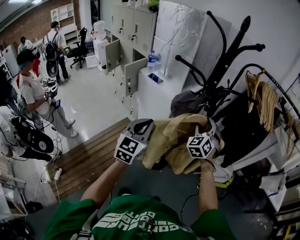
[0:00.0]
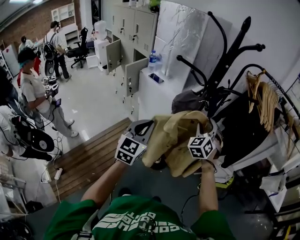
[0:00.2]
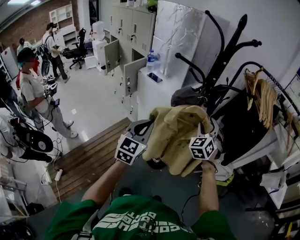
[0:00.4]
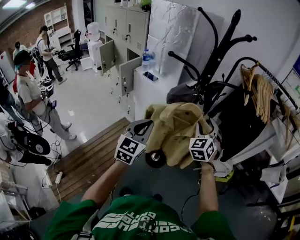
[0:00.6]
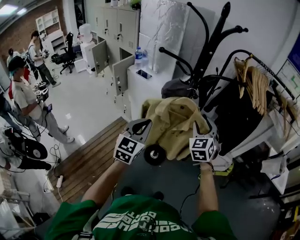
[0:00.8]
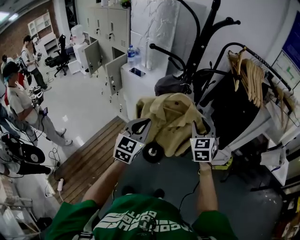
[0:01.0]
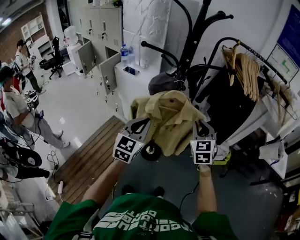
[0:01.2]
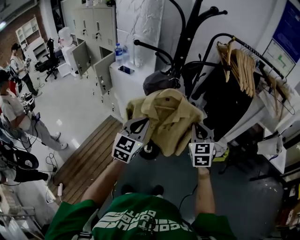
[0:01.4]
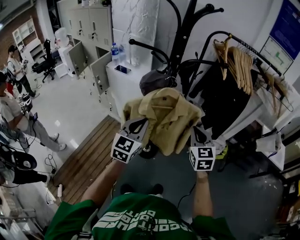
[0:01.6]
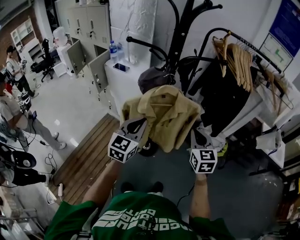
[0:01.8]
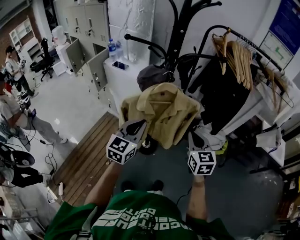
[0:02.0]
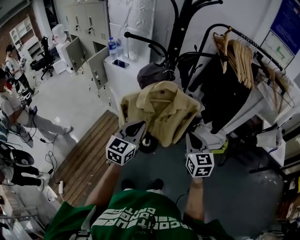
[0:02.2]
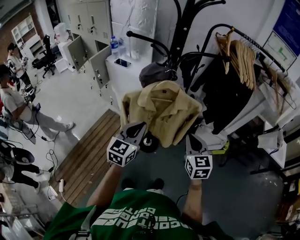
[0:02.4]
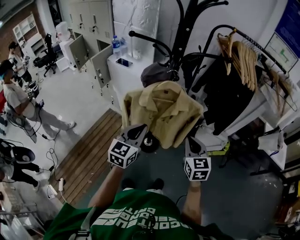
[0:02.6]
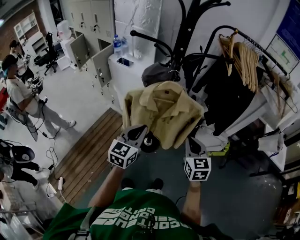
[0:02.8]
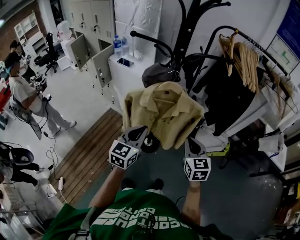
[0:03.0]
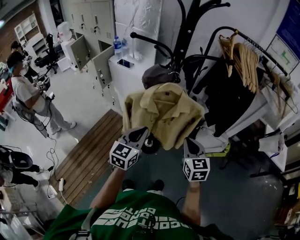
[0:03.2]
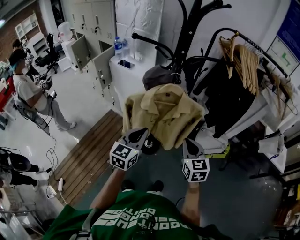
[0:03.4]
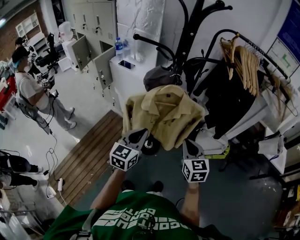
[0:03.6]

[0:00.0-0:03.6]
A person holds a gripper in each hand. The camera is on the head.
0:00.0 to 0:01.8: The left gripper shifts about 10 cm to the right. Meanwhile the right gripper goes roughly 20 cm backward and to the right, twists approximately 40 degrees clockwise, seen from behind, and closes up.
0:01.8 to 0:03.6: The two grippers go roughly 5 cm downward.

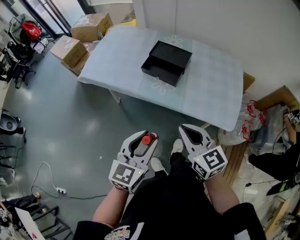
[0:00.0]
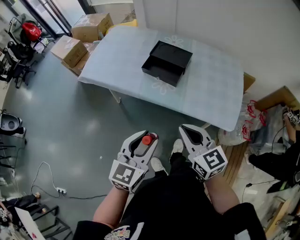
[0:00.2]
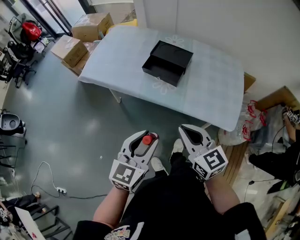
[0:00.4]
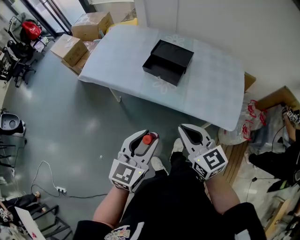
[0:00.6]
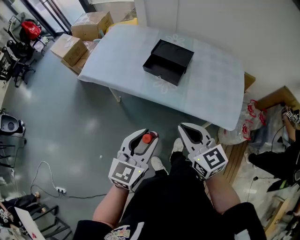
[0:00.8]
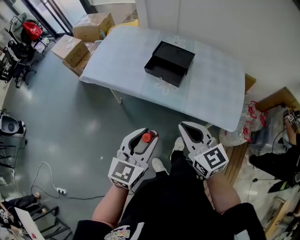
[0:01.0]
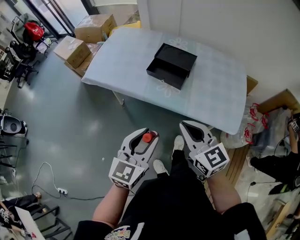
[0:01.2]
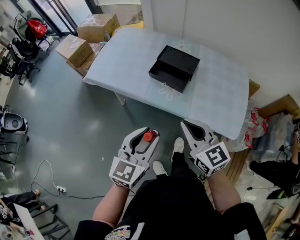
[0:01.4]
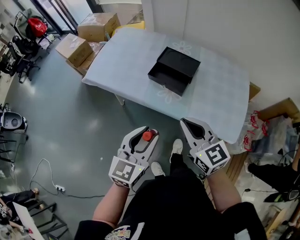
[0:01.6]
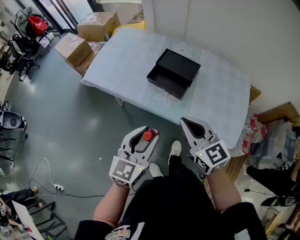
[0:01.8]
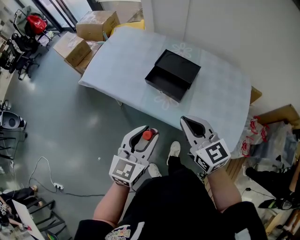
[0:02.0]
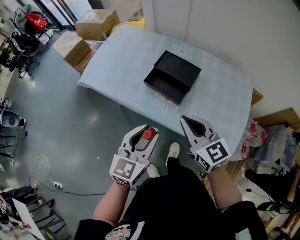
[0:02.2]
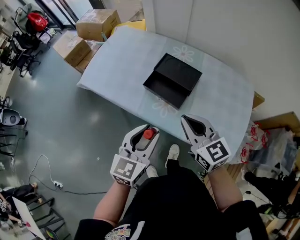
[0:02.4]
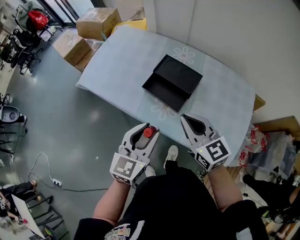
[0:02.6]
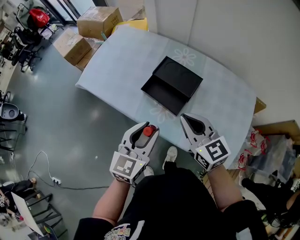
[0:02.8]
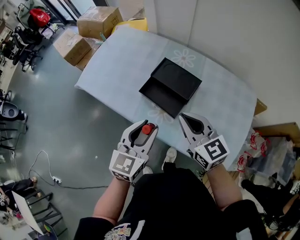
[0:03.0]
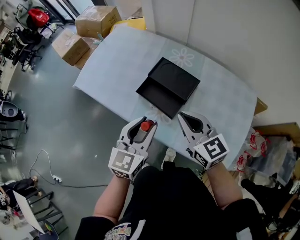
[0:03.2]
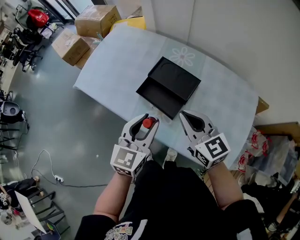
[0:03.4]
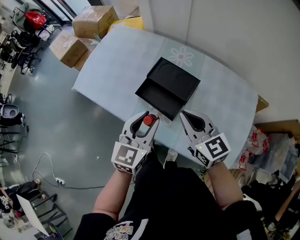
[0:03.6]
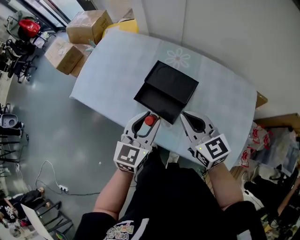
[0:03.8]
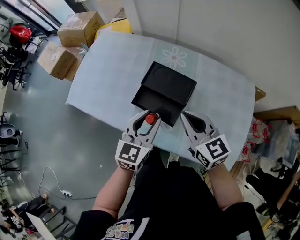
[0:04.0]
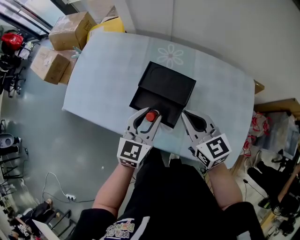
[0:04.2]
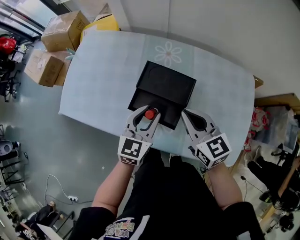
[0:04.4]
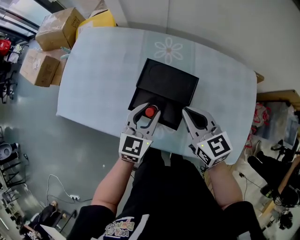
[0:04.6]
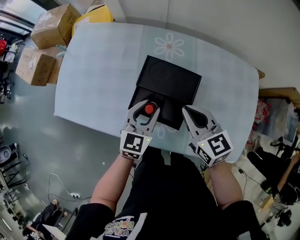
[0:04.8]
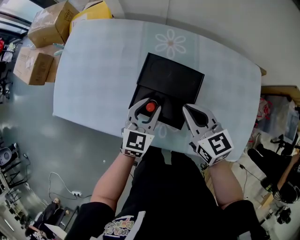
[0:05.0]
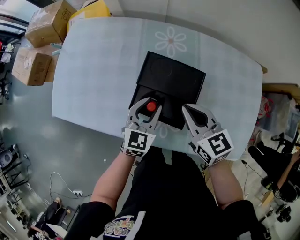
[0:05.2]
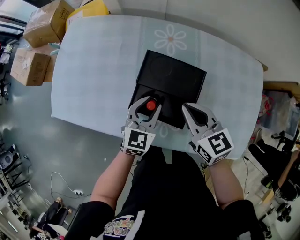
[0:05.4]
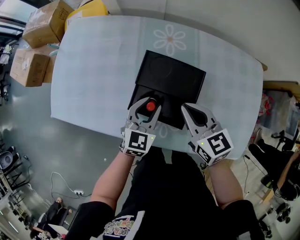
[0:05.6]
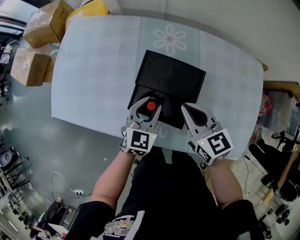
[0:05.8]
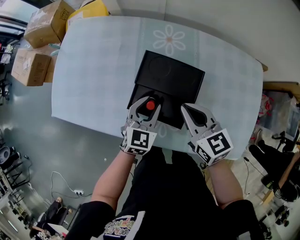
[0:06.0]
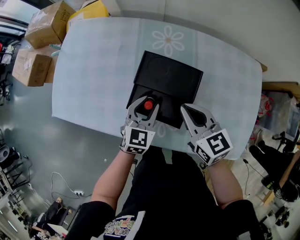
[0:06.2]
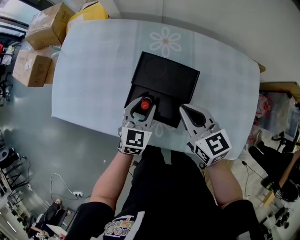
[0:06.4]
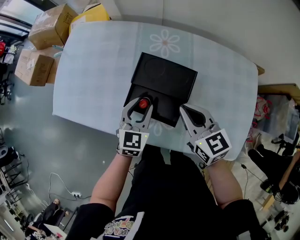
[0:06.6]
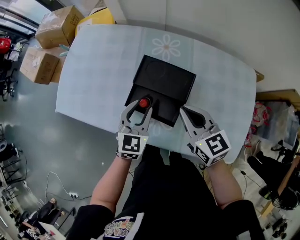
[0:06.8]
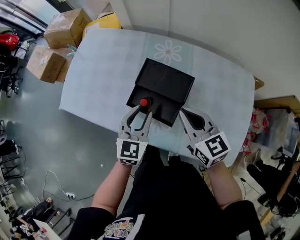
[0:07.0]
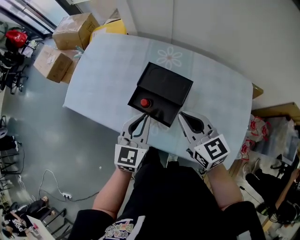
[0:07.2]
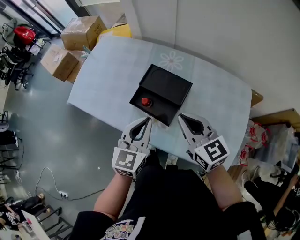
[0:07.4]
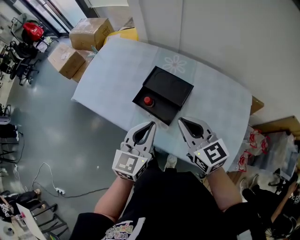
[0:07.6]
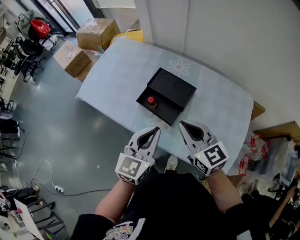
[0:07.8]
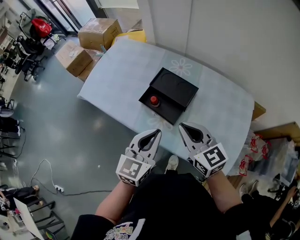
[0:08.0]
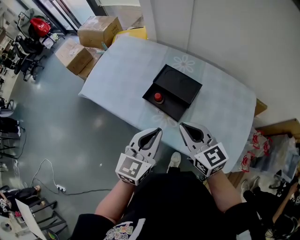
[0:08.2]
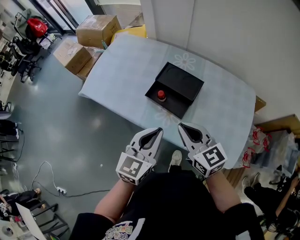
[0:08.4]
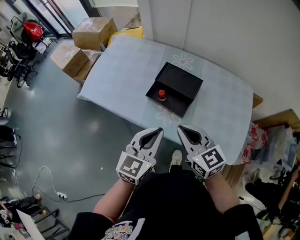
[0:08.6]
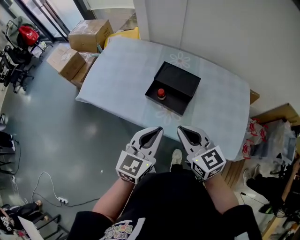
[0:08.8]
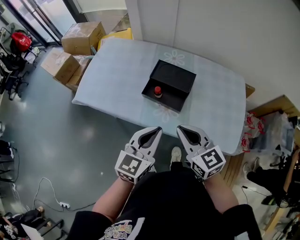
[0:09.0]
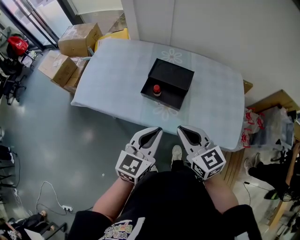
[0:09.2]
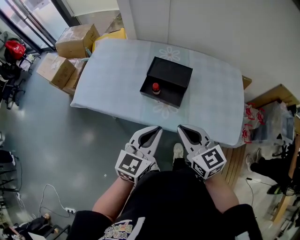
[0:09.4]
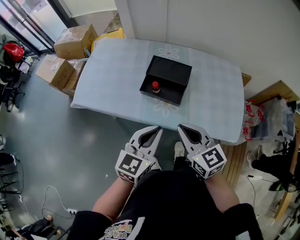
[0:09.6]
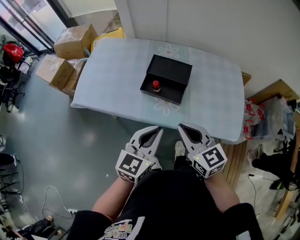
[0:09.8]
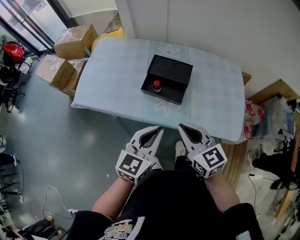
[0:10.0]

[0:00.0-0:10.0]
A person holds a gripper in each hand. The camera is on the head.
0:00.0 to 0:01.4: The right gripper changes place by about 5 cm.
0:01.4 to 0:02.8: The left gripper moves forward and to the right, approximately 20 cm, while the right gripper shifts roughly 20 cm forward.
0:02.8 to 0:04.2: The right gripper shifts approximately 10 cm forward. Meanwhile the left gripper heads forward, covering approximately 15 cm.
0:04.2 to 0:05.8: The grippers both shift downward and forward by approximately 10 cm.
0:05.8 to 0:07.2: Both grippers move upward and backward, approximately 15 cm. The left gripper closes up.
0:07.2 to 0:08.6: The left gripper goes approximately 15 cm backward and upward. Meanwhile the right gripper travels backward and to the left by roughly 15 cm.
0:08.6 to 0:10.0: The left gripper shifts by some 5 cm. Meanwhile the right gripper travels backward by approximately 5 cm.

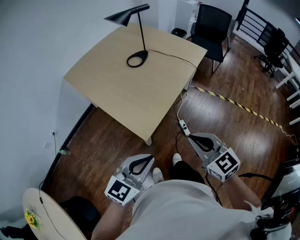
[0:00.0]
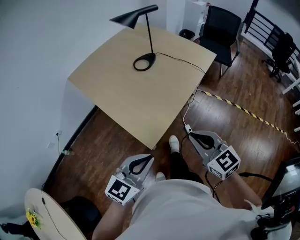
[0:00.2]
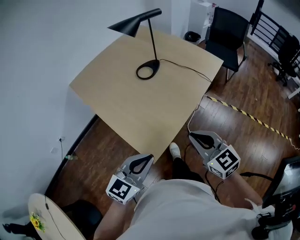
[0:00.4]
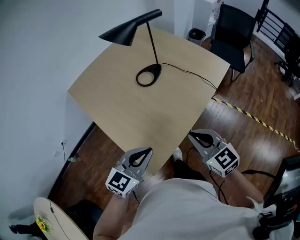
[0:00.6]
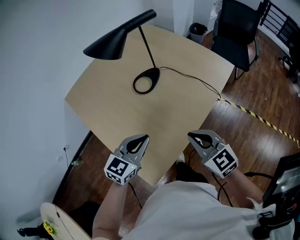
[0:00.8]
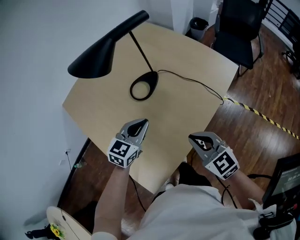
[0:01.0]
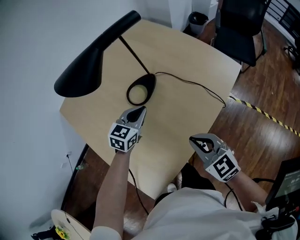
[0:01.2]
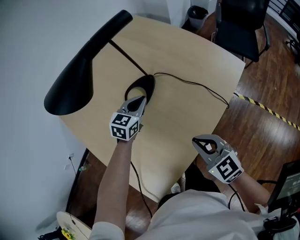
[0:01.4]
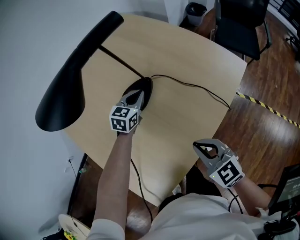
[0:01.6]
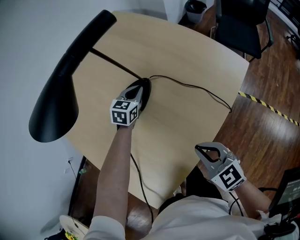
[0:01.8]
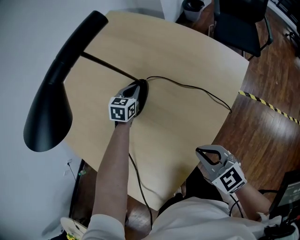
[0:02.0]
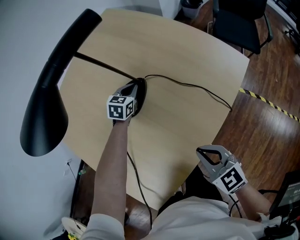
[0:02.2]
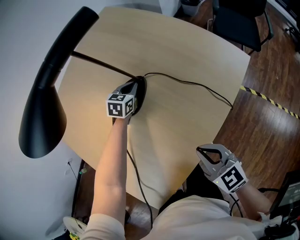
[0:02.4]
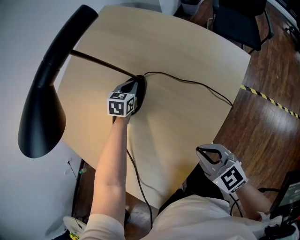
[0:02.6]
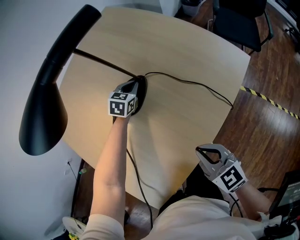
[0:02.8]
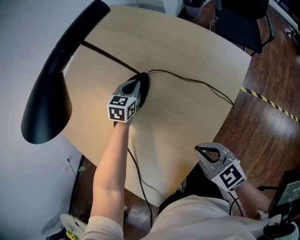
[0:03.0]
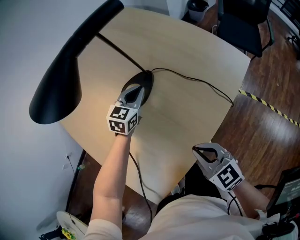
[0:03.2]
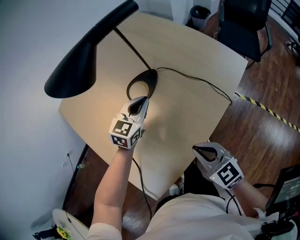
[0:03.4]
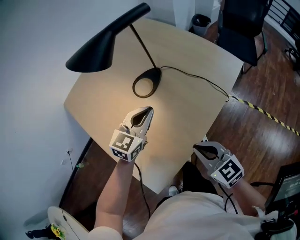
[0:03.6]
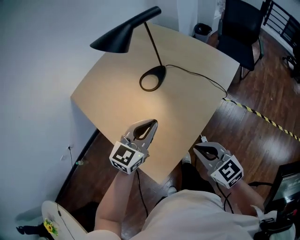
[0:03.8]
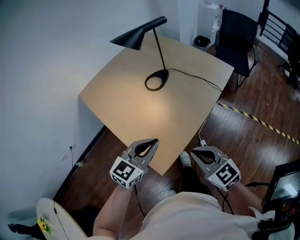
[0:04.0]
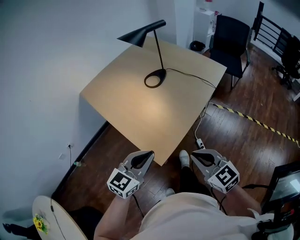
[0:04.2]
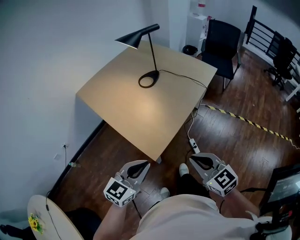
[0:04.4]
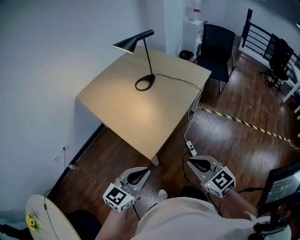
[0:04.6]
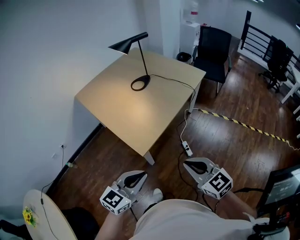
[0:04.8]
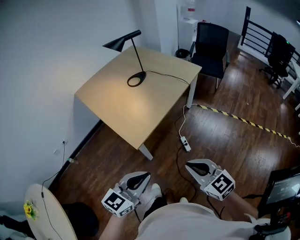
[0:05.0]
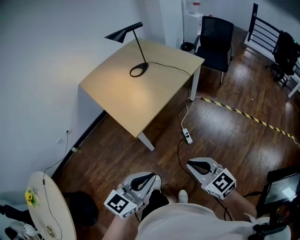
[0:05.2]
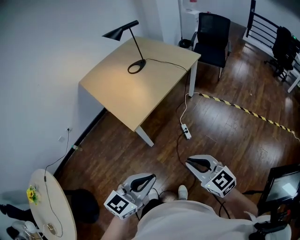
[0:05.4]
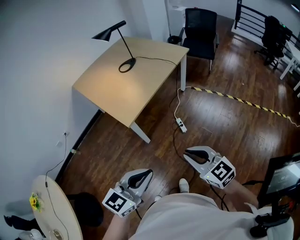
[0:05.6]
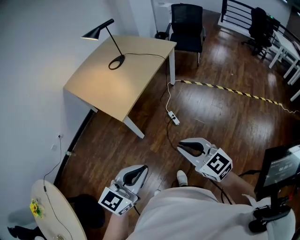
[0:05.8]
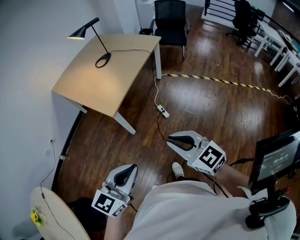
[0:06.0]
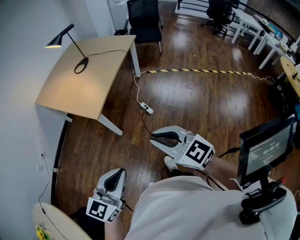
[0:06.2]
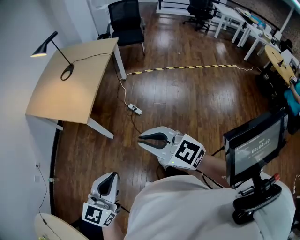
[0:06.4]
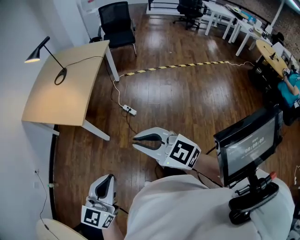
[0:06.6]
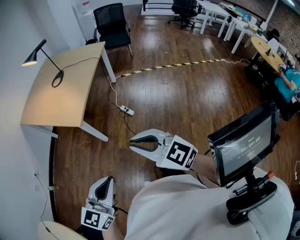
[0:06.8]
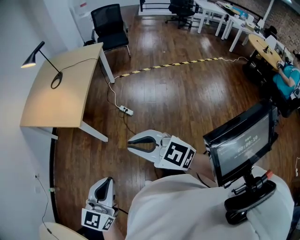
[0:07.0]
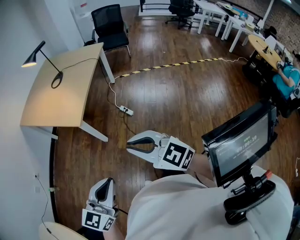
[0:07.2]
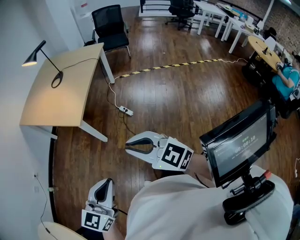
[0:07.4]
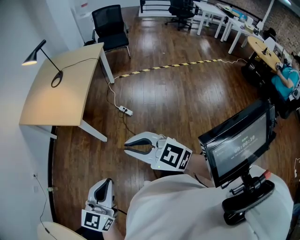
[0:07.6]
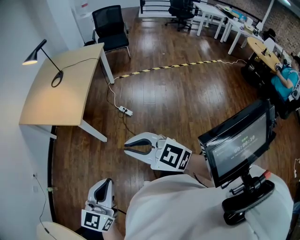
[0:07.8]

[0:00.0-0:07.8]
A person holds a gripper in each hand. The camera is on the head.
0:00.0 to 0:01.6: The two grippers travel together, forward, some 70 cm. The left gripper changes its angle by about 30 degrees.
0:01.6 to 0:03.2: The left gripper moves some 10 cm downward and comes back.
0:03.2 to 0:04.6: Both grippers are carried backward, some 60 cm. The left gripper turns by about 20 degrees.
0:04.6 to 0:06.2: The two grippers go approximately 30 cm backward and to the right.
0:06.2 to 0:07.8: The grippers both shift backward and to the left by approximately 10 cm.

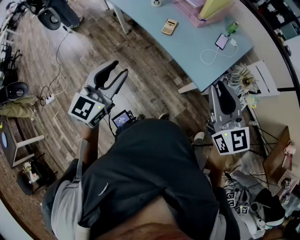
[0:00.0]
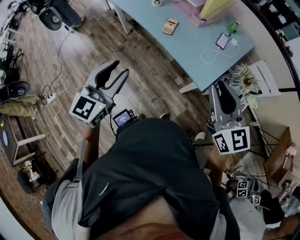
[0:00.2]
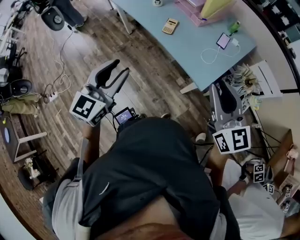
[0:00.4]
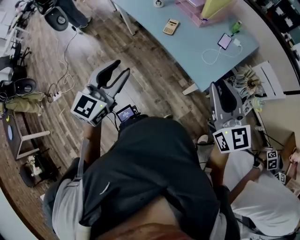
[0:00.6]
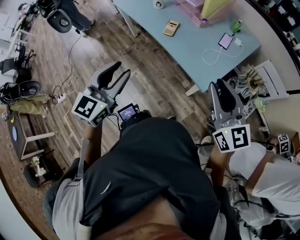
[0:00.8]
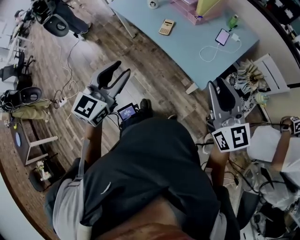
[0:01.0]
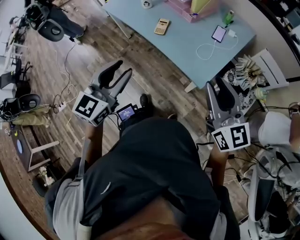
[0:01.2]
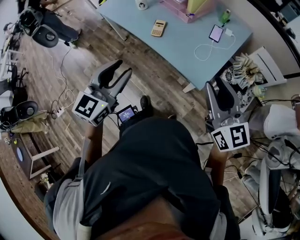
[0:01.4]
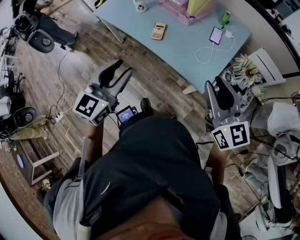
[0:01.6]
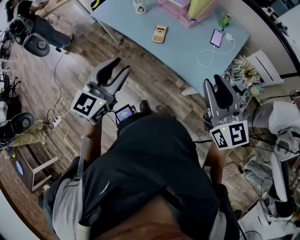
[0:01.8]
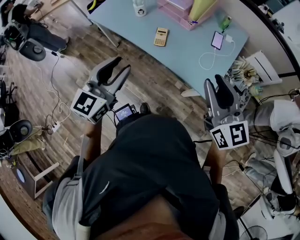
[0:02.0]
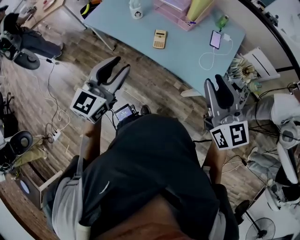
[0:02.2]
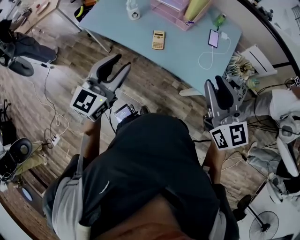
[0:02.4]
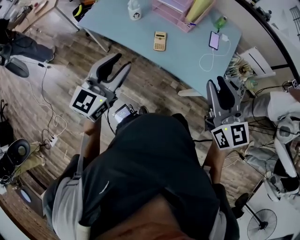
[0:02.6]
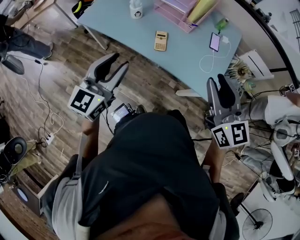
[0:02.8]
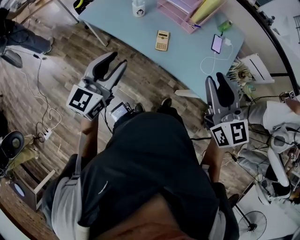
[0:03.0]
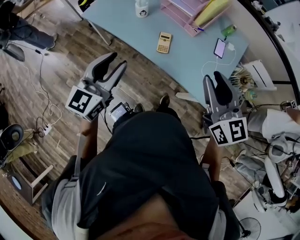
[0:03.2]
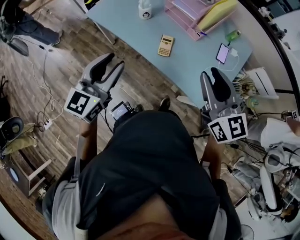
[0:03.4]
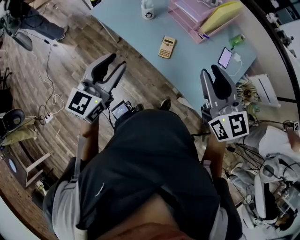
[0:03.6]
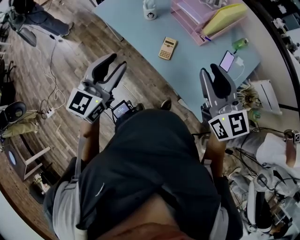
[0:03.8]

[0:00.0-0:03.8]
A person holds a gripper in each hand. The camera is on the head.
0:00.0 to 0:01.2: Both grippers travel together to the right, some 10 cm.
0:01.2 to 0:02.6: The two grippers go approximately 25 cm to the left and forward.
0:02.6 to 0:03.8: The left gripper goes approximately 5 cm forward; the right gripper moves forward, about 15 cm, and turns by approximately 20 degrees.
